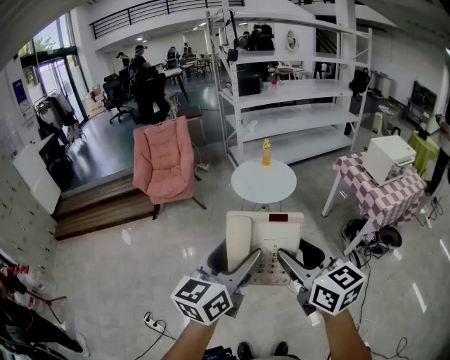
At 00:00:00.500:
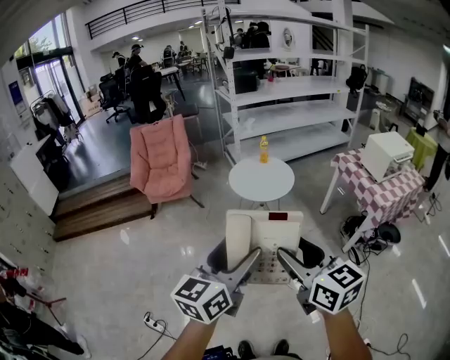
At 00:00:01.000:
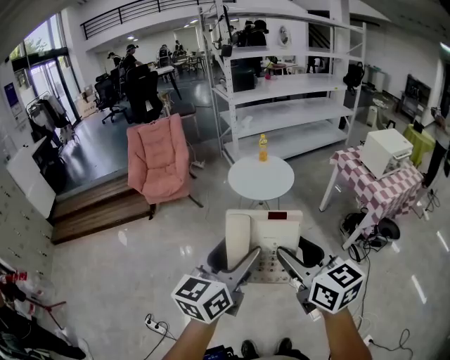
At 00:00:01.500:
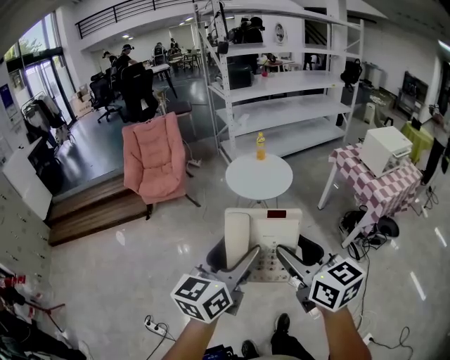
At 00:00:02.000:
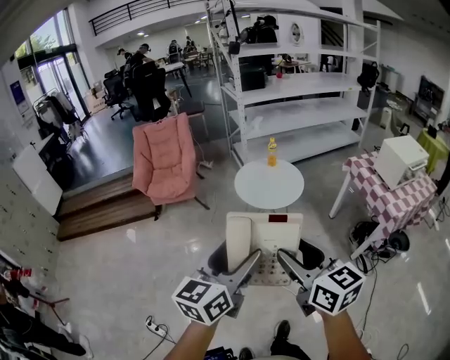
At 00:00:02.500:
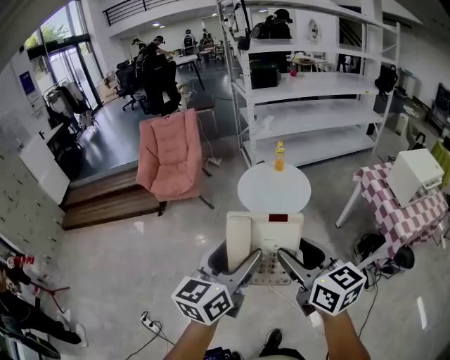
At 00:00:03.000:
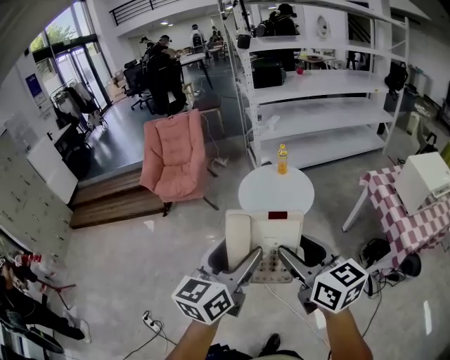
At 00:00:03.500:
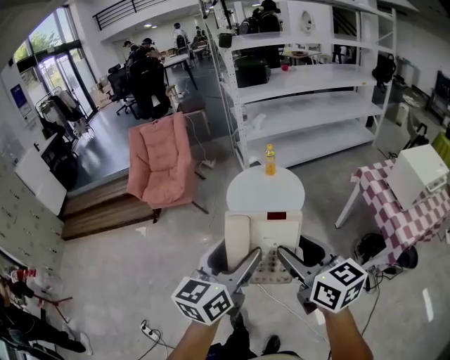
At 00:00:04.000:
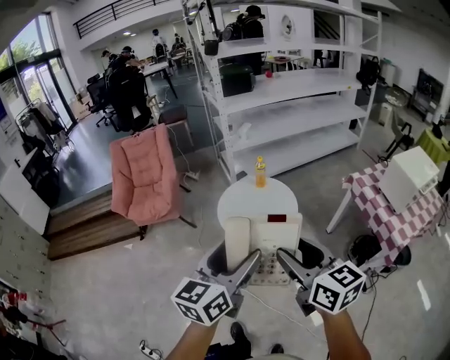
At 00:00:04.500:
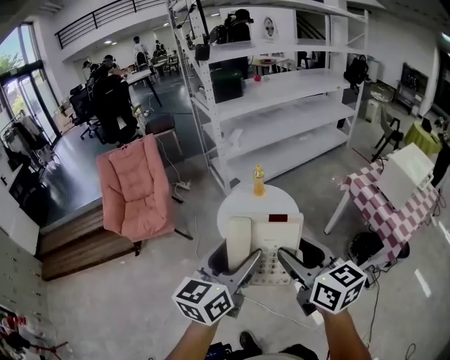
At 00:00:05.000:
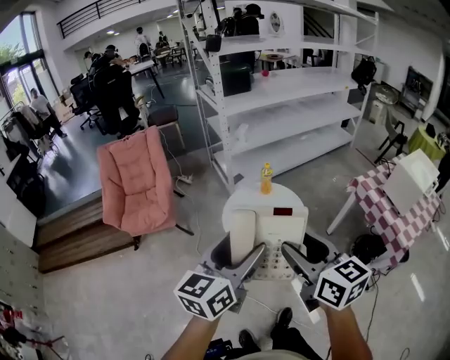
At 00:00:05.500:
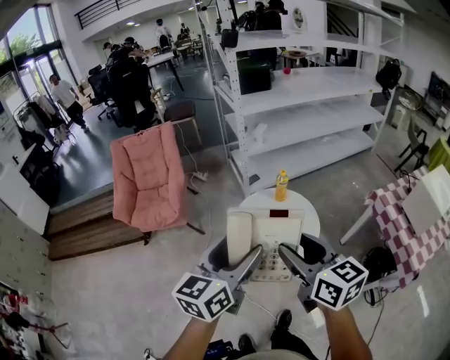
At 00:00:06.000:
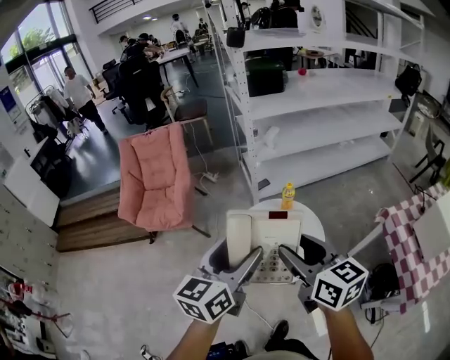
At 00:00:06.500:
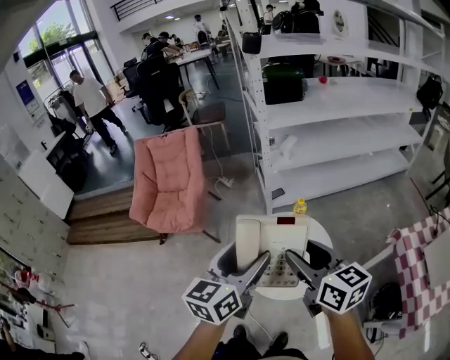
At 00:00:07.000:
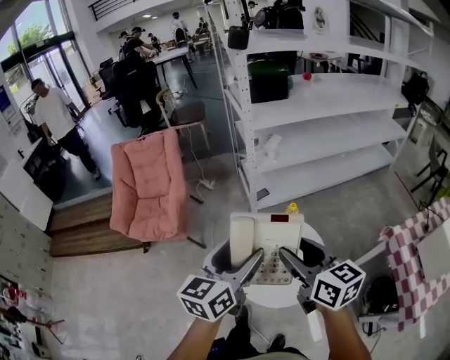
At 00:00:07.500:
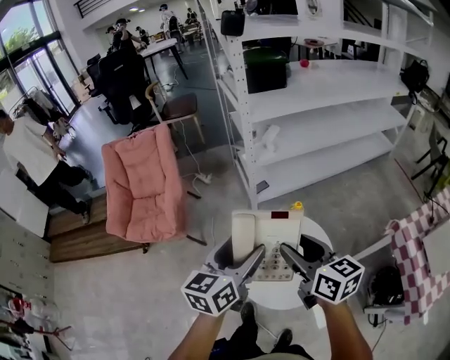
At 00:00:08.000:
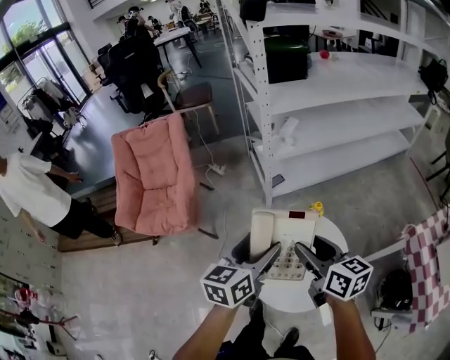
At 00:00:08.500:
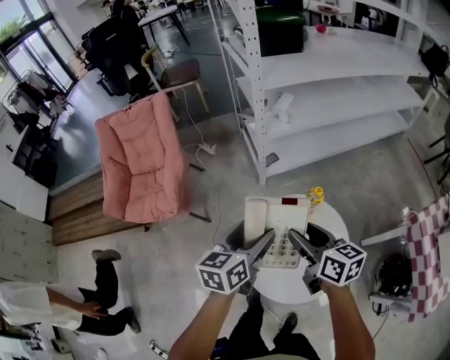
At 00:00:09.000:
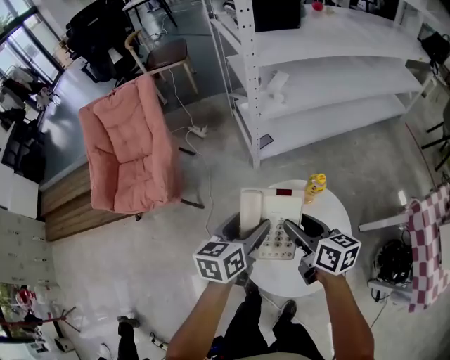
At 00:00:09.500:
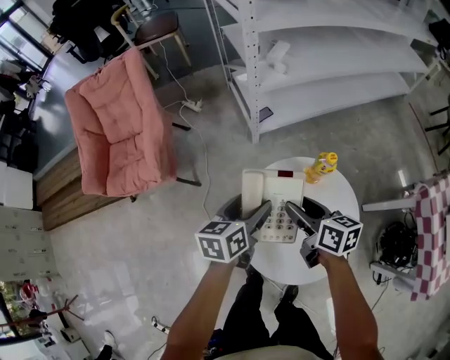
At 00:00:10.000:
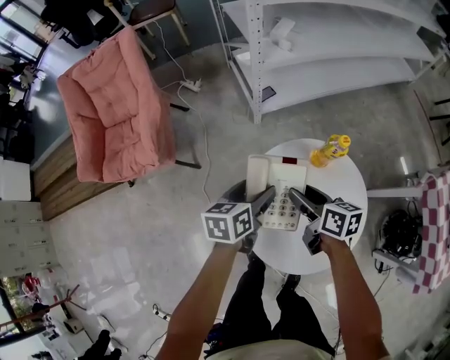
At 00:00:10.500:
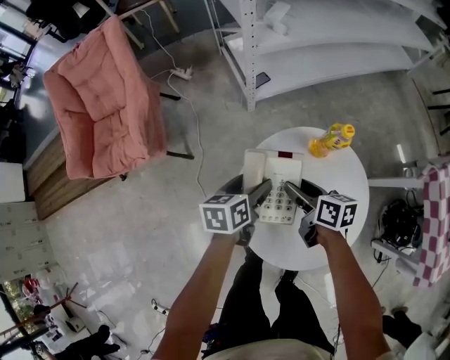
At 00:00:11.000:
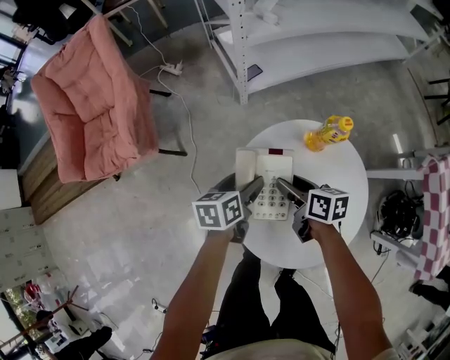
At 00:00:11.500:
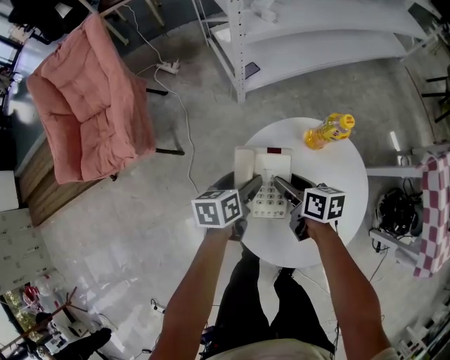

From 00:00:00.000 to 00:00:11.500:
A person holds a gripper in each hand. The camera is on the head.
From 00:00:00.000 to 00:00:02.000: Both grippers travel together forward, approximately 10 cm.
From 00:00:02.000 to 00:00:04.000: The grippers both shift forward and to the right by about 30 cm.
From 00:00:04.000 to 00:00:06.000: Both grippers move forward, approximately 30 cm.
From 00:00:06.000 to 00:00:07.500: The right gripper heads forward and downward, covering some 20 cm. Meanwhile the left gripper heads forward, covering about 20 cm.
From 00:00:07.500 to 00:00:09.500: Both grippers travel together downward and forward, roughly 30 cm. The left gripper changes its angle by about 20 degrees, while the right gripper changes its angle by about 20 degrees.
From 00:00:09.500 to 00:00:11.500: The two grippers go roughly 20 cm downward.

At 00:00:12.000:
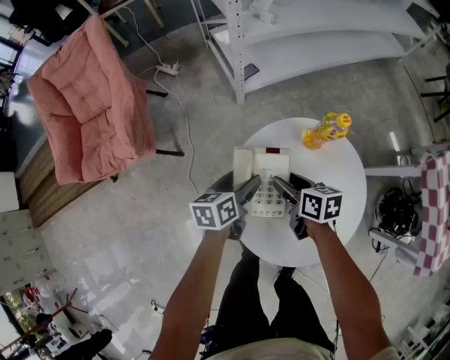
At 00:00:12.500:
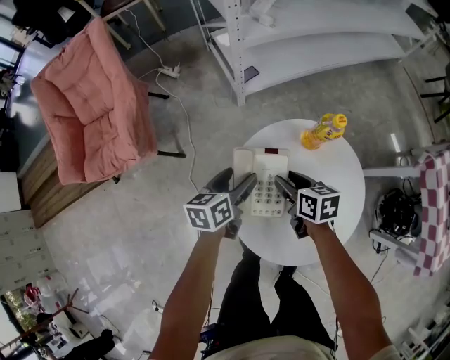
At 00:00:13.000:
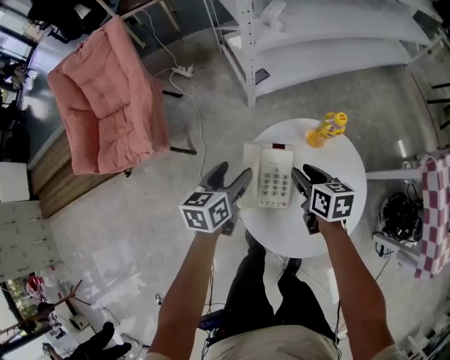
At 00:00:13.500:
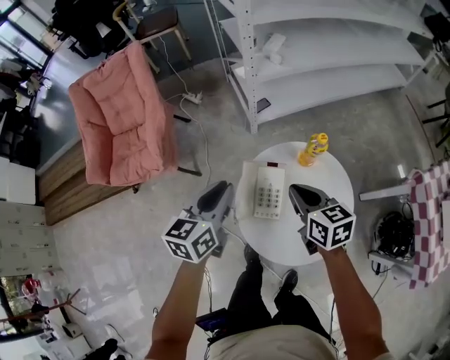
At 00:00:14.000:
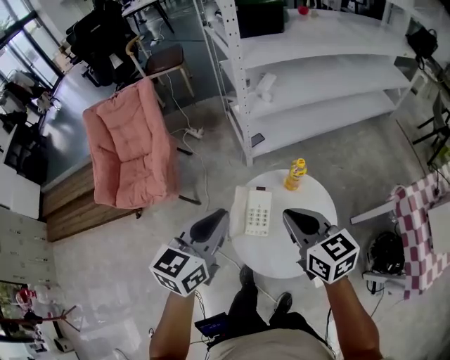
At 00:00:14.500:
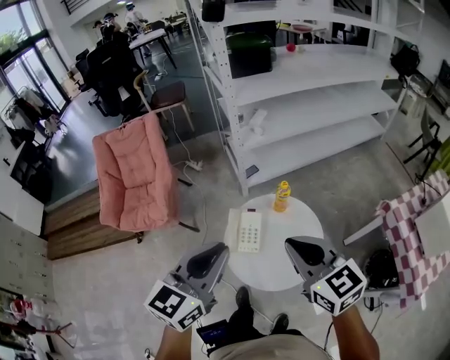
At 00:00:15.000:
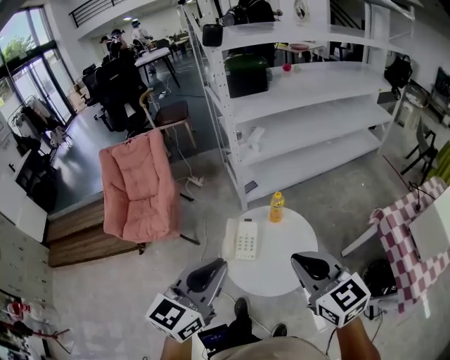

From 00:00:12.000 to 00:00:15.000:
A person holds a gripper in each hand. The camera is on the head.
From 00:00:12.000 to 00:00:13.500: Both grippers move upward, some 25 cm. The right gripper turns by approximately 20 degrees, and closes its fingers, while the left gripper changes its angle by approximately 30 degrees, and closes up.
From 00:00:13.500 to 00:00:15.000: The grippers both shift upward and backward by some 35 cm. The right gripper rotates some 30 degrees, while the left gripper rotates approximately 20 degrees.

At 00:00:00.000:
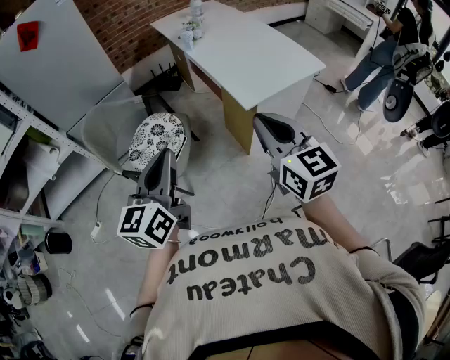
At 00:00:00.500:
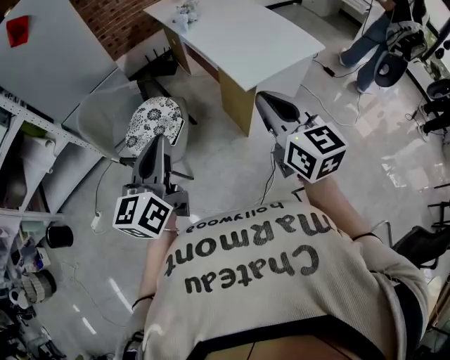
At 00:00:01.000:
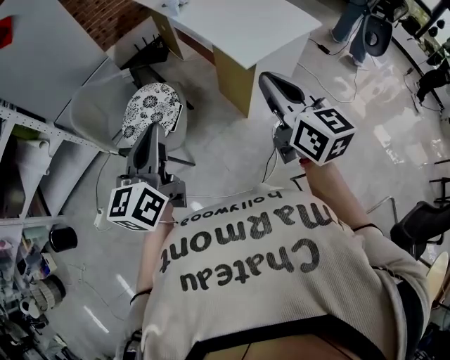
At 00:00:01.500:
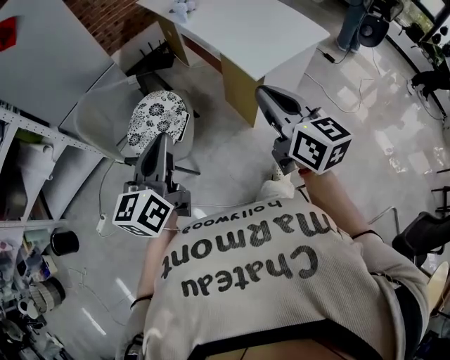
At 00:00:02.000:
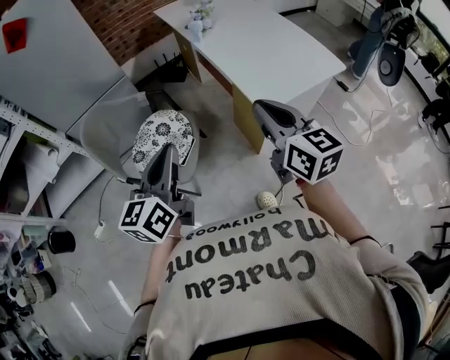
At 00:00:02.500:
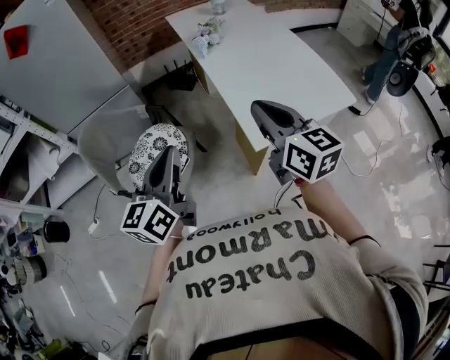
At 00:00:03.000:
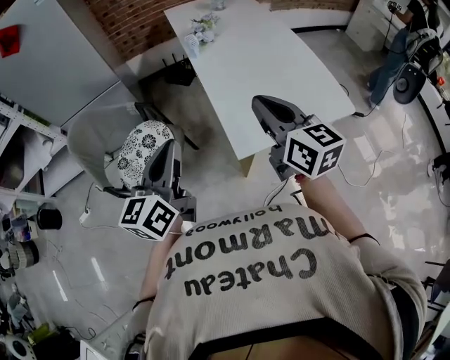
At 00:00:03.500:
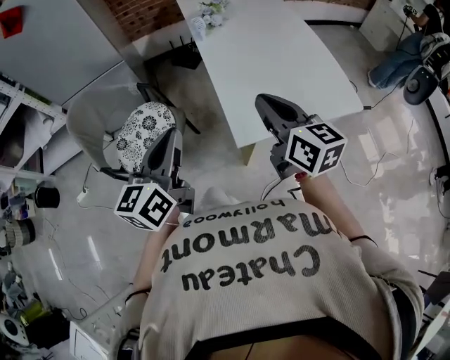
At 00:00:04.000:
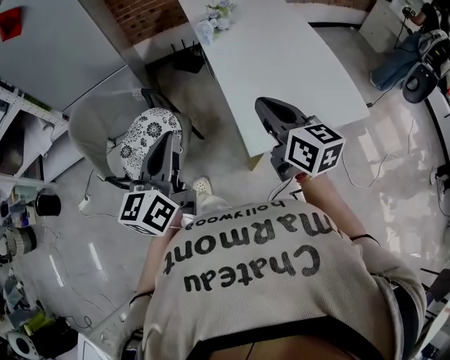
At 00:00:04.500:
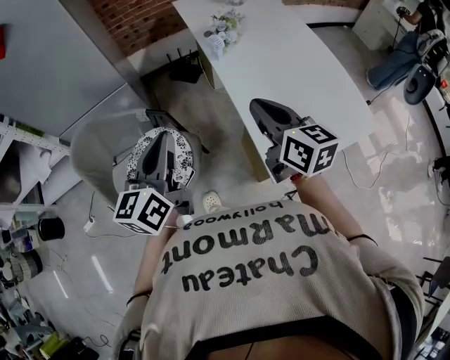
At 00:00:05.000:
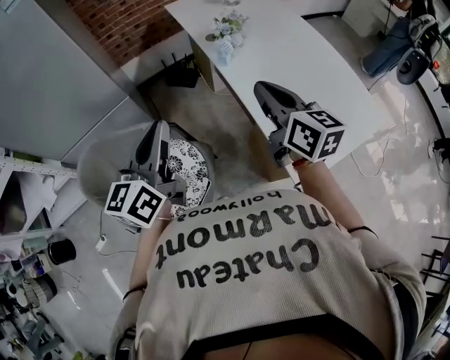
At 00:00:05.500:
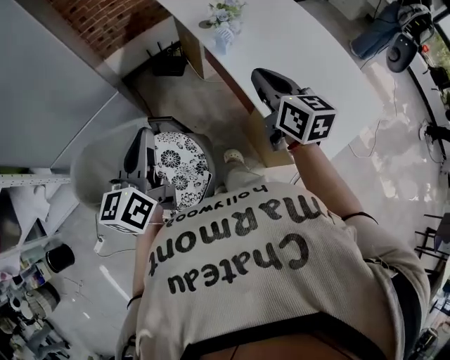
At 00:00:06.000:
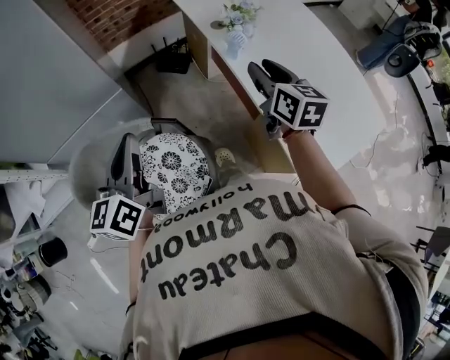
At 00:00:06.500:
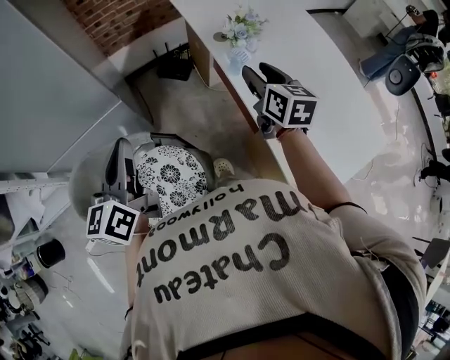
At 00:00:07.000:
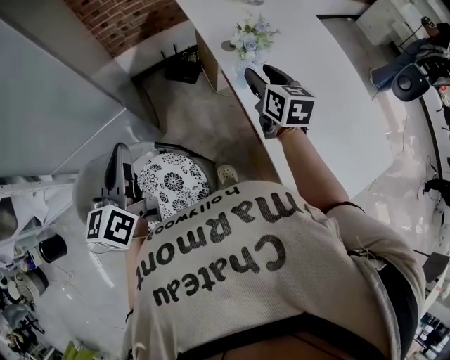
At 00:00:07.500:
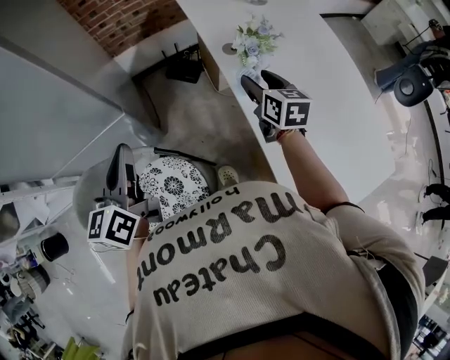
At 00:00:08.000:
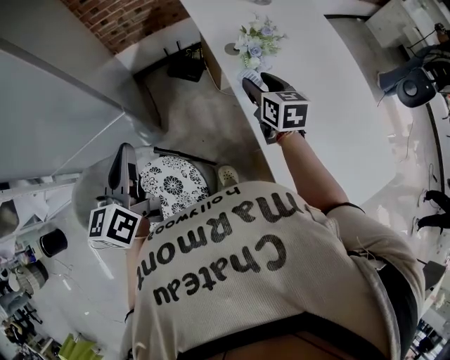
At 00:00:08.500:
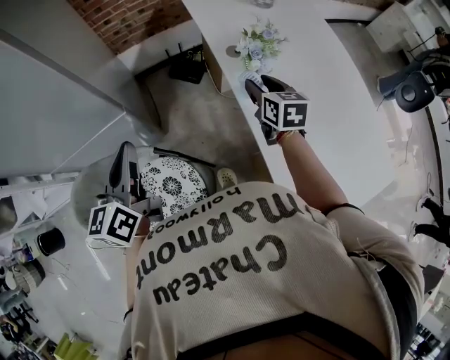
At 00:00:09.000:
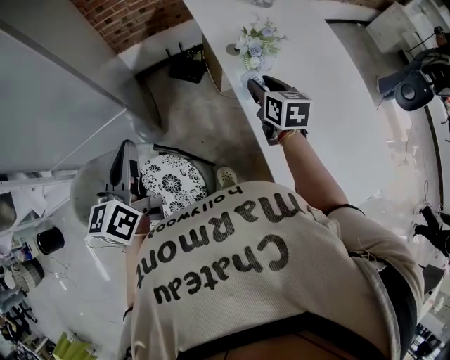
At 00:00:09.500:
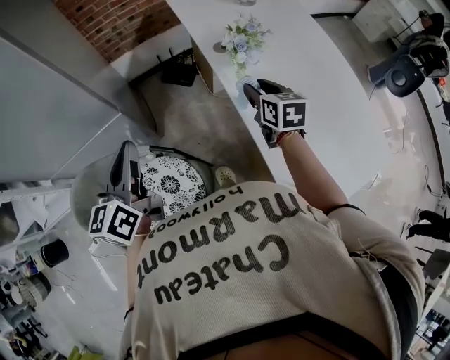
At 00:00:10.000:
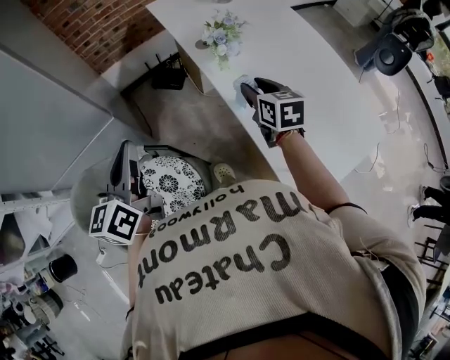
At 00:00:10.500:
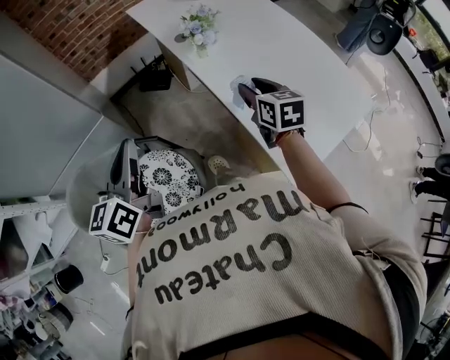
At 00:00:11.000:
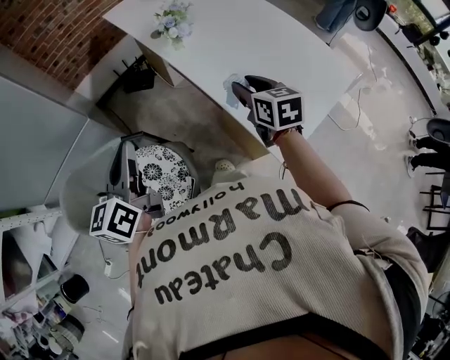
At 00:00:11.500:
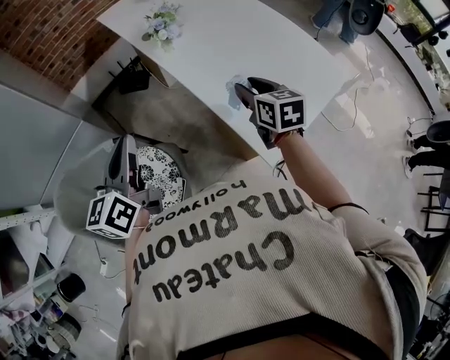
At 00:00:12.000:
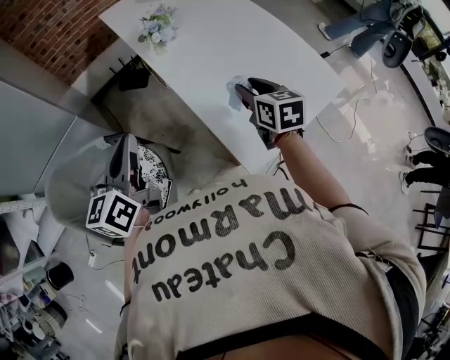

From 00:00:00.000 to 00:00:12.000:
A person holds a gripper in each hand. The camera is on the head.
From 00:00:00.000 to 00:00:02.000: The grippers both shift forward by roughly 10 cm.
From 00:00:02.000 to 00:00:04.000: The left gripper moves to the right and forward, about 20 cm; the right gripper moves forward and to the right, about 20 cm.
From 00:00:04.000 to 00:00:06.000: The grippers both shift forward and to the left by roughly 35 cm. The right gripper turns by about 20 degrees, and opens its fingers.
From 00:00:06.000 to 00:00:08.000: The right gripper moves forward and downward, roughly 20 cm, while the left gripper moves forward, some 15 cm.
From 00:00:08.000 to 00:00:10.000: The right gripper is displaced backward by about 10 cm. Meanwhile the left gripper shifts some 5 cm backward.
From 00:00:10.000 to 00:00:12.000: Both grippers move to the right and backward, about 25 cm.
